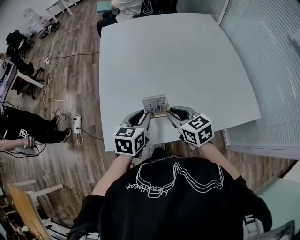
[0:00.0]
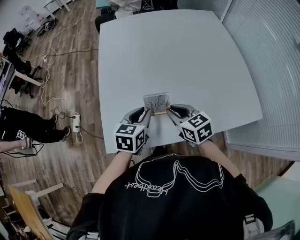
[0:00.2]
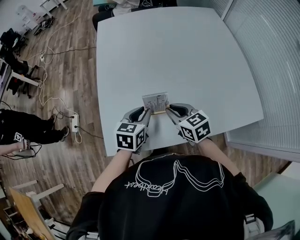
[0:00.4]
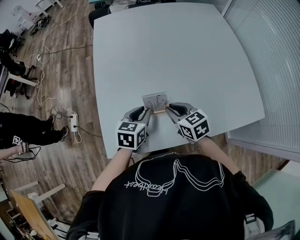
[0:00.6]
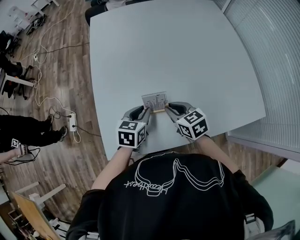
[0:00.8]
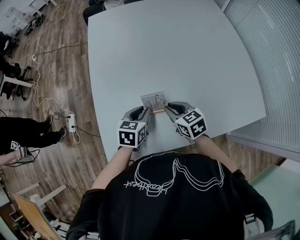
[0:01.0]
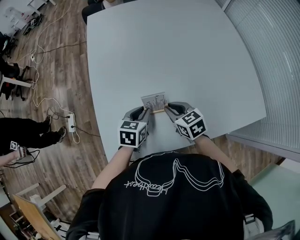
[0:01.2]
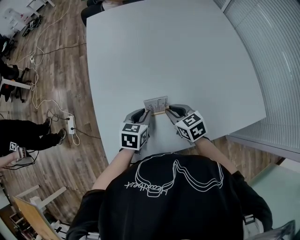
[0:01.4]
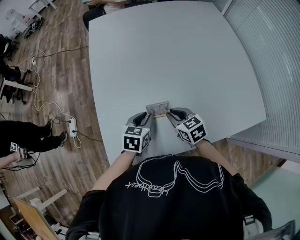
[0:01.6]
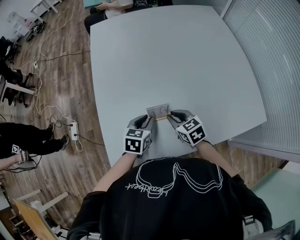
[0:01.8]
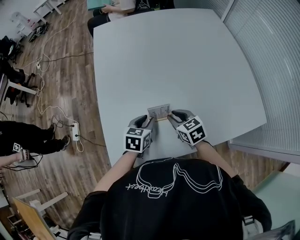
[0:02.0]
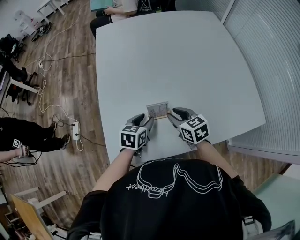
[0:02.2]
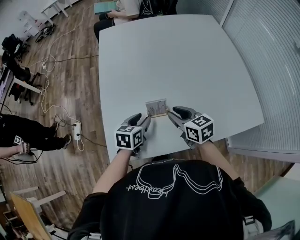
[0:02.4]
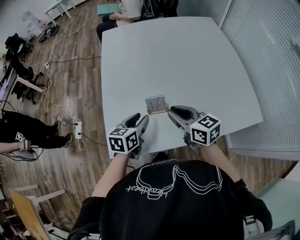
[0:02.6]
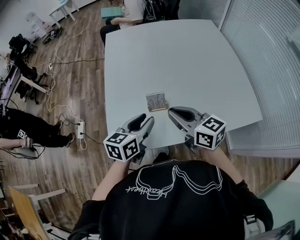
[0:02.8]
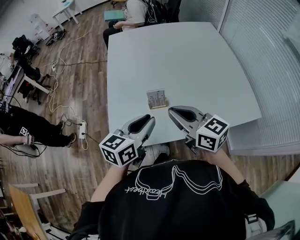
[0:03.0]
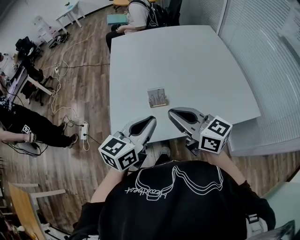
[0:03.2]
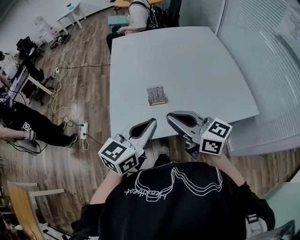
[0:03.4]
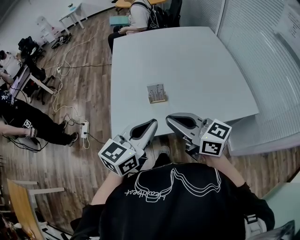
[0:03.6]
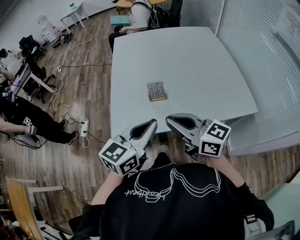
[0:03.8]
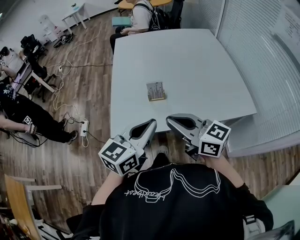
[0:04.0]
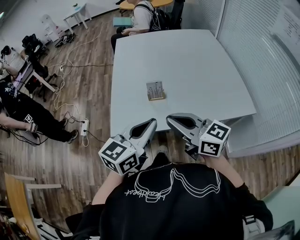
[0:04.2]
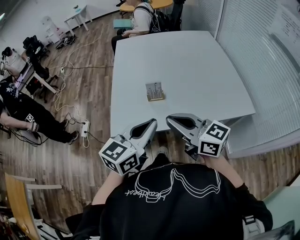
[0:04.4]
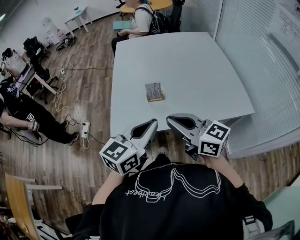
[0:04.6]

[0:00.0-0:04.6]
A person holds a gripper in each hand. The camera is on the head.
0:00.0 to 0:01.6: Both grippers move downward and forward, approximately 15 cm.
0:01.6 to 0:03.0: Both grippers travel together upward and backward, about 25 cm. The right gripper tips its fingers upward by some 30 degrees. The left gripper swivels about 30 degrees.
0:03.0 to 0:04.6: The right gripper moves backward, some 15 cm. Meanwhile the left gripper travels backward and upward by some 15 cm.

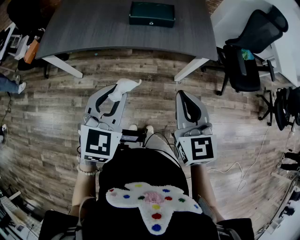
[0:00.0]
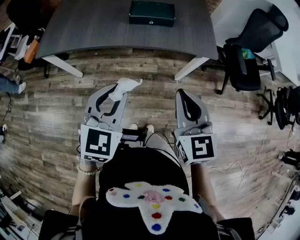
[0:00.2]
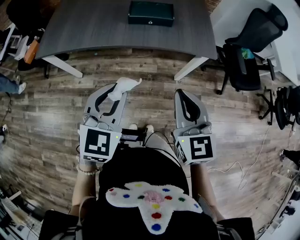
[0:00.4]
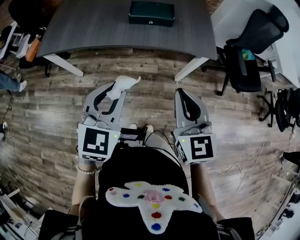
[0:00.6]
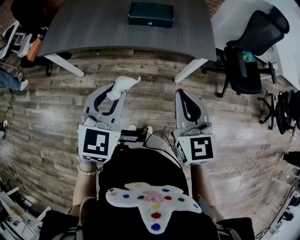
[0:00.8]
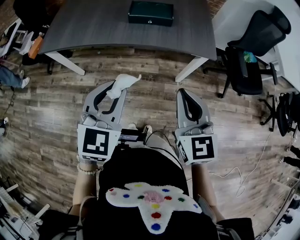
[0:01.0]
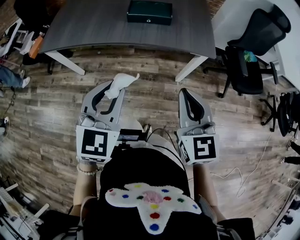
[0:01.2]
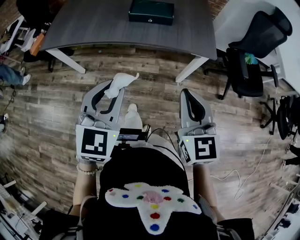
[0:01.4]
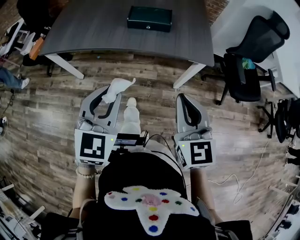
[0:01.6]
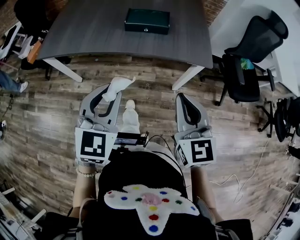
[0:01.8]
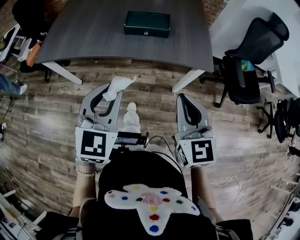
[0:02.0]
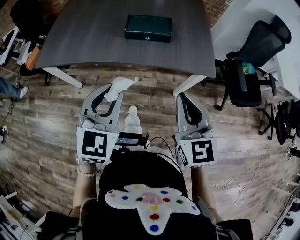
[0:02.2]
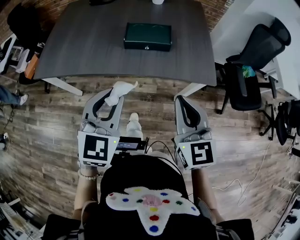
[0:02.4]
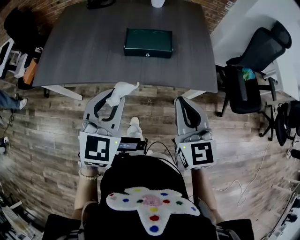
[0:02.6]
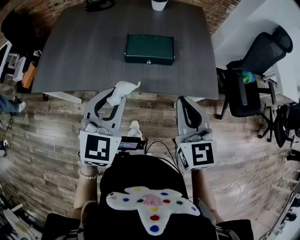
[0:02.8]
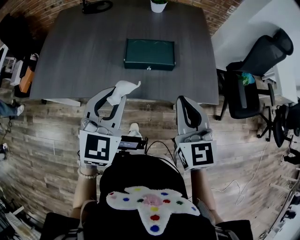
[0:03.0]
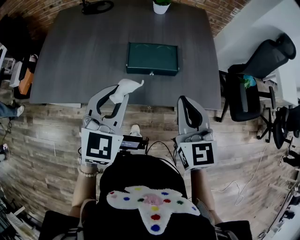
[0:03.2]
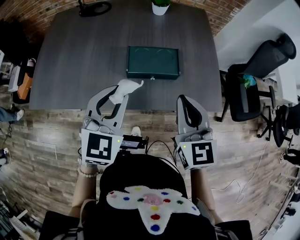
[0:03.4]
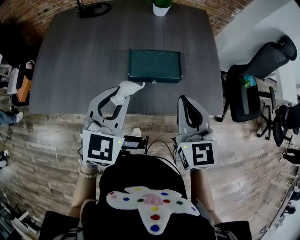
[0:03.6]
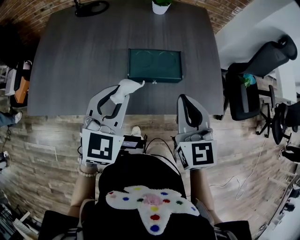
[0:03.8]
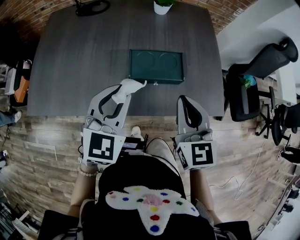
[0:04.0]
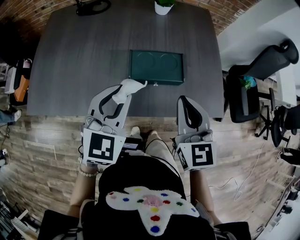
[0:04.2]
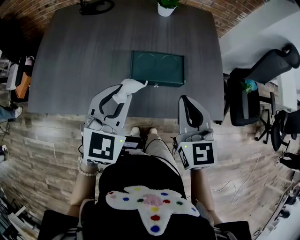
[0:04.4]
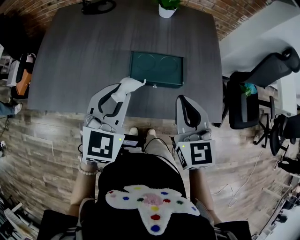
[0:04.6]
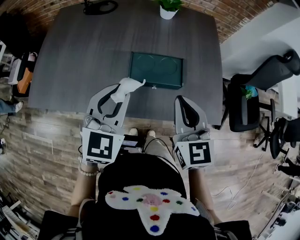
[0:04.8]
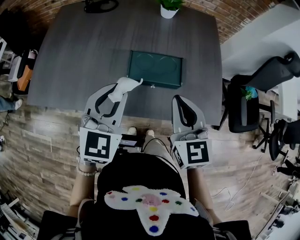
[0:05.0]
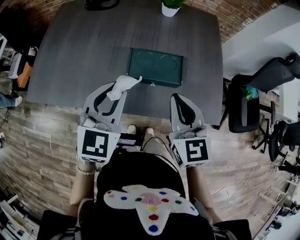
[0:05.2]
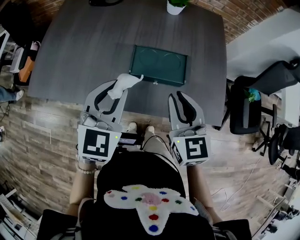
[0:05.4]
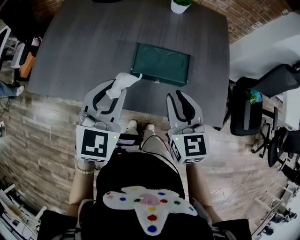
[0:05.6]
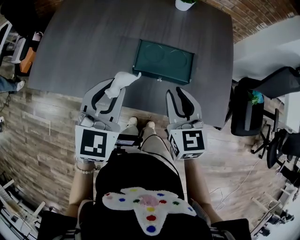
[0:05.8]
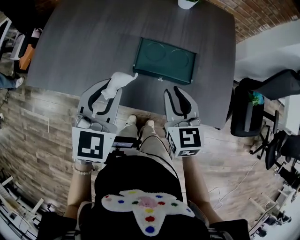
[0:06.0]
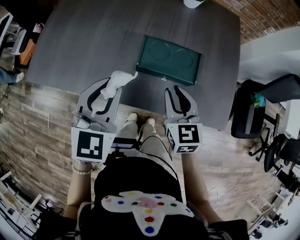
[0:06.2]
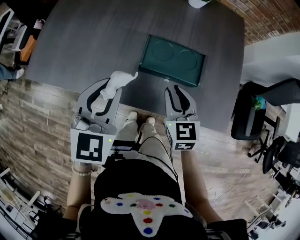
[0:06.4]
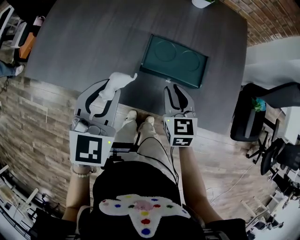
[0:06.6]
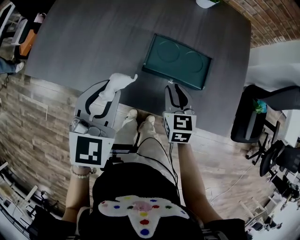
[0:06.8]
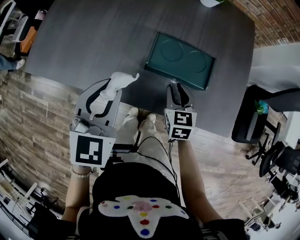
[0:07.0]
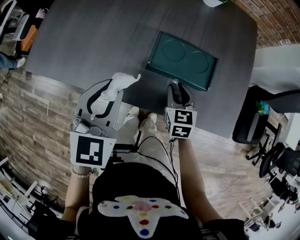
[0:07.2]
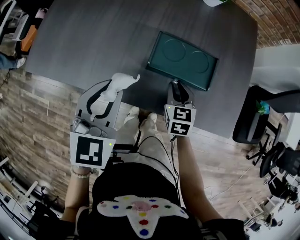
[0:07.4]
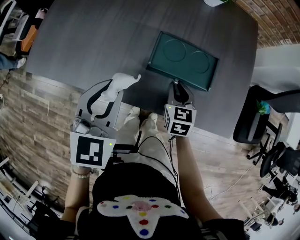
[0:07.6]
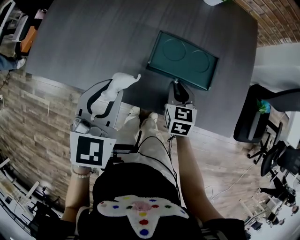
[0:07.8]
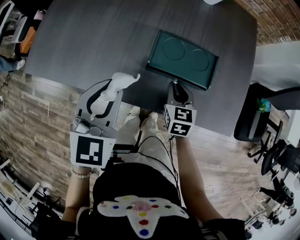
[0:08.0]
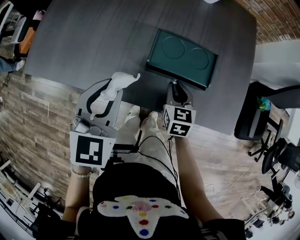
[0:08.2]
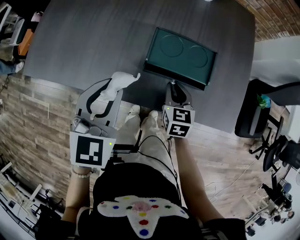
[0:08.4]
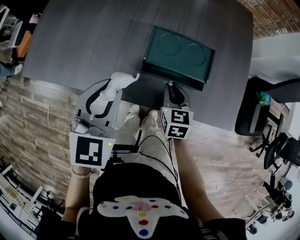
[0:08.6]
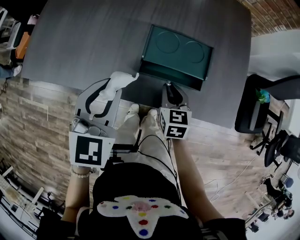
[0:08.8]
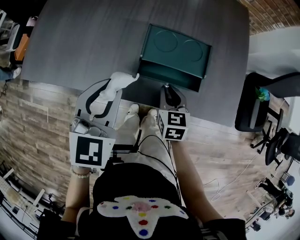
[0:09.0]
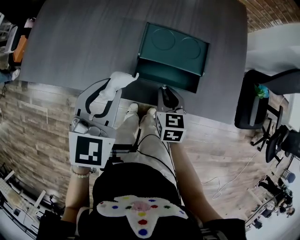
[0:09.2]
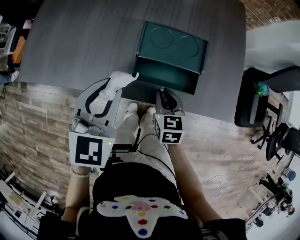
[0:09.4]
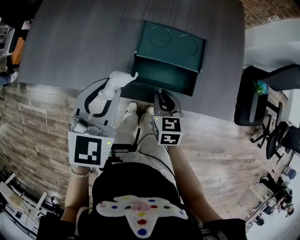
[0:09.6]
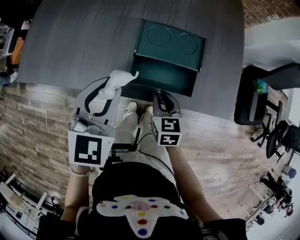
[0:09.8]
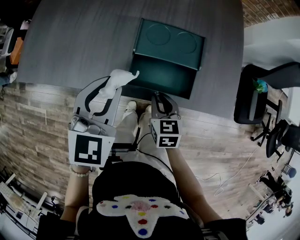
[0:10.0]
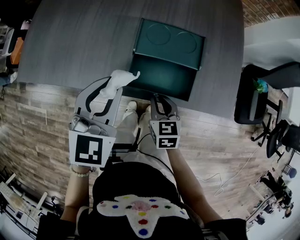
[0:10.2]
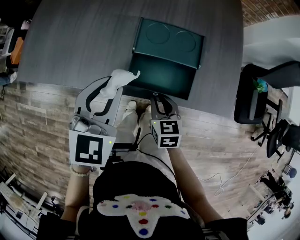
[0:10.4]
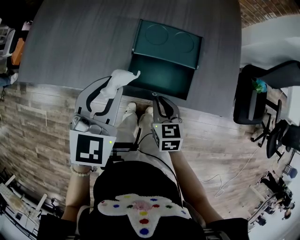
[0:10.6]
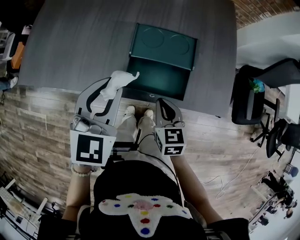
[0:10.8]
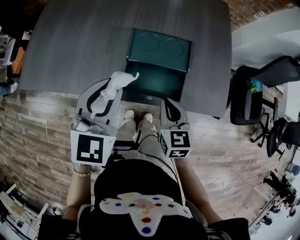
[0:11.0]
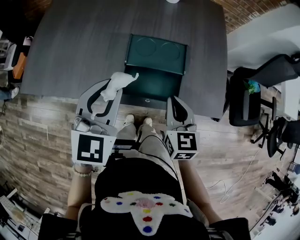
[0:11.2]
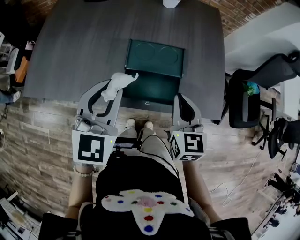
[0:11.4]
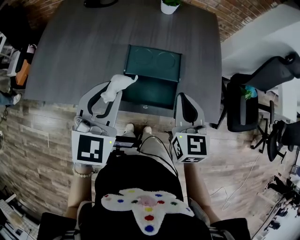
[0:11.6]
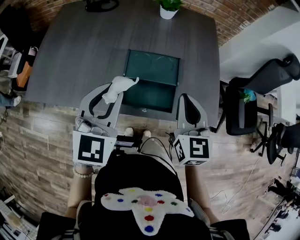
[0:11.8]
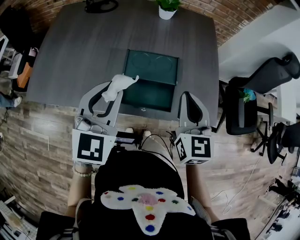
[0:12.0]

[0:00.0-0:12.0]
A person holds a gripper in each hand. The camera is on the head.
0:00.0 to 0:01.6: The right gripper is displaced to the right by approximately 5 cm.
0:01.6 to 0:03.0: The grippers both shift forward by some 30 cm.
0:03.0 to 0:04.4: Both grippers travel together forward, about 10 cm.
0:04.4 to 0:06.0: The right gripper shifts about 10 cm downward, and opens up.
0:06.0 to 0:07.6: The right gripper travels downward by approximately 15 cm, while the left gripper moves about 5 cm.
0:07.6 to 0:09.0: The right gripper moves backward, some 5 cm.
0:09.0 to 0:10.4: The right gripper travels backward by about 5 cm.
0:10.4 to 0:12.0: The left gripper goes roughly 10 cm upward. Meanwhile the right gripper moves upward and to the right, roughly 30 cm, and angles its fingers upward, by approximately 30 degrees.

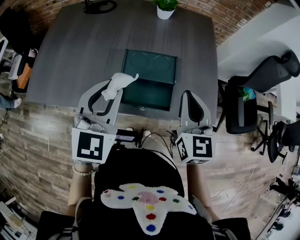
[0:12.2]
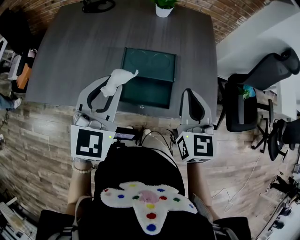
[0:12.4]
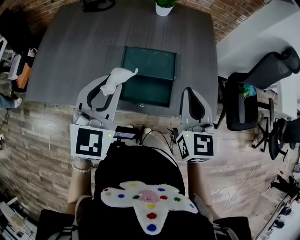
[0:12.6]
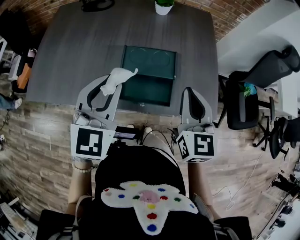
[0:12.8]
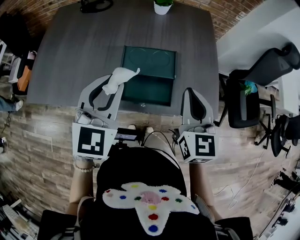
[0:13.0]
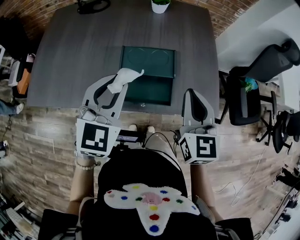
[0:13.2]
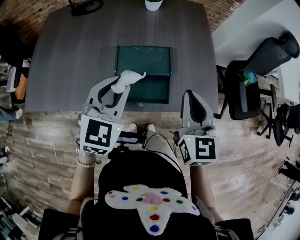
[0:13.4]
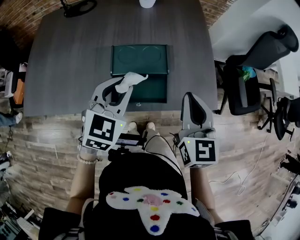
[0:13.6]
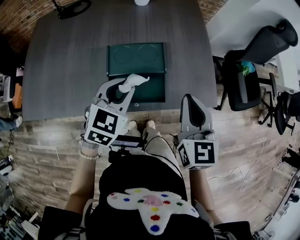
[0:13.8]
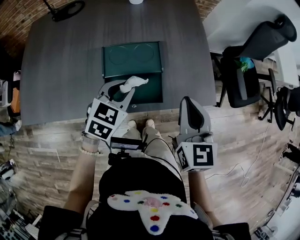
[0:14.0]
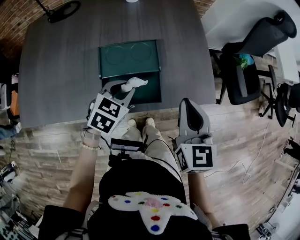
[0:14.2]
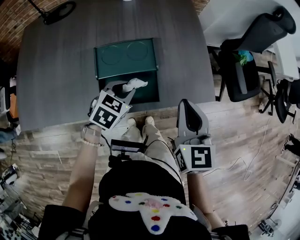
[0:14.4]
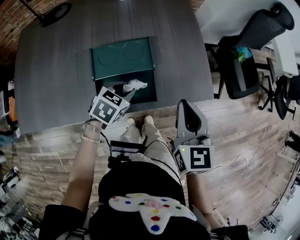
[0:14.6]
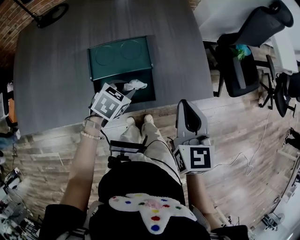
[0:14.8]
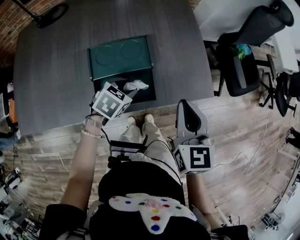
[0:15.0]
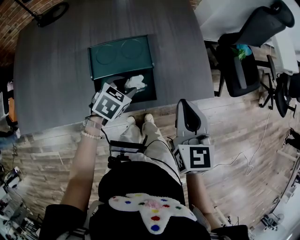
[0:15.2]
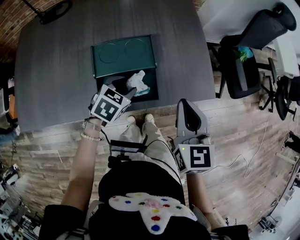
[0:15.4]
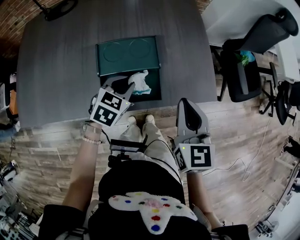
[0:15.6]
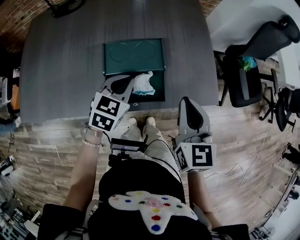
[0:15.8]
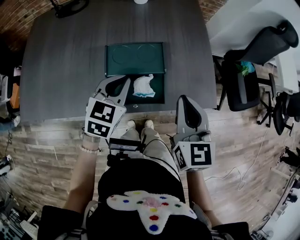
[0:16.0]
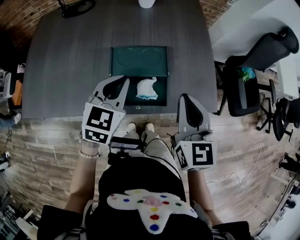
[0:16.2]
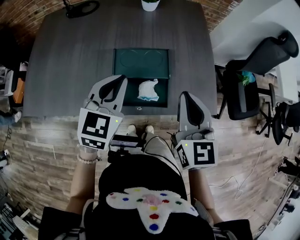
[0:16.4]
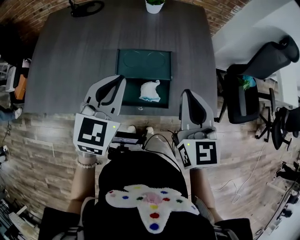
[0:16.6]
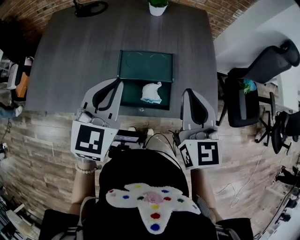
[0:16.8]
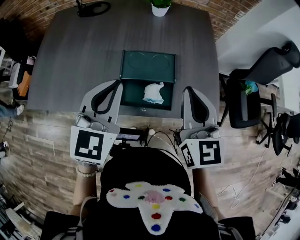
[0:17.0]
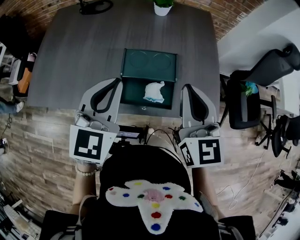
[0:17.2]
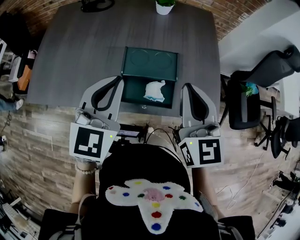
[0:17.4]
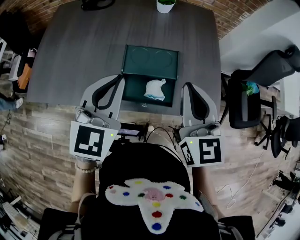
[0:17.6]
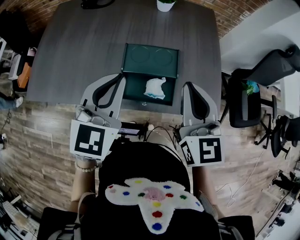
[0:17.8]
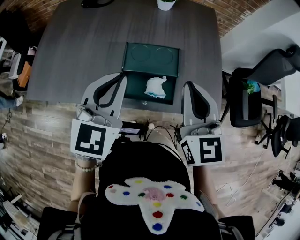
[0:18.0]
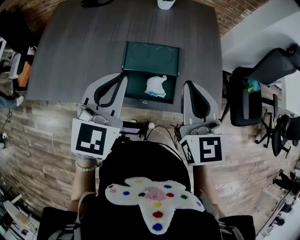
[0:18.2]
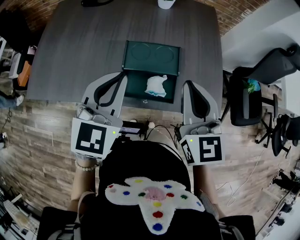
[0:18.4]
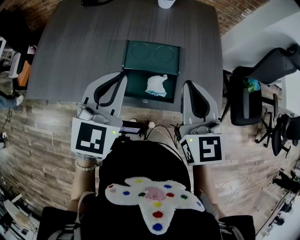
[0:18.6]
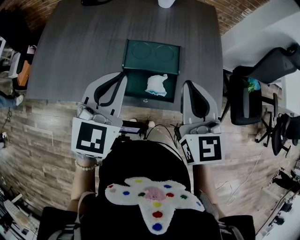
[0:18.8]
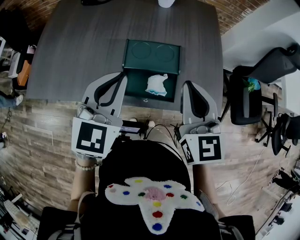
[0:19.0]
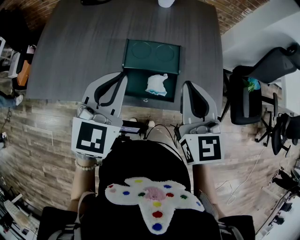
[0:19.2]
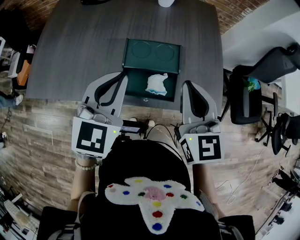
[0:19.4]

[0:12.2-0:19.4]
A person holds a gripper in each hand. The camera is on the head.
0:12.2 to 0:13.6: The left gripper heads downward and to the right, covering approximately 10 cm.
0:13.6 to 0:15.0: The left gripper moves downward, roughly 20 cm, and changes its angle by roughly 40 degrees. The right gripper is displaced downward by roughly 5 cm.
0:15.0 to 0:16.6: The left gripper heads upward, covering approximately 25 cm, points its fingers about 40 degrees further upward, and closes, while the right gripper shifts about 10 cm upward.
0:16.6 to 0:18.0: The grippers move only a little.
0:18.0 to 0:19.4: The two grippers keep their place.
